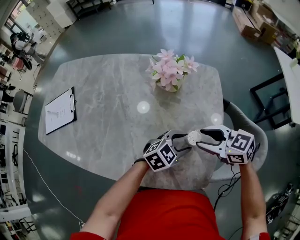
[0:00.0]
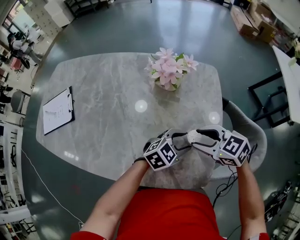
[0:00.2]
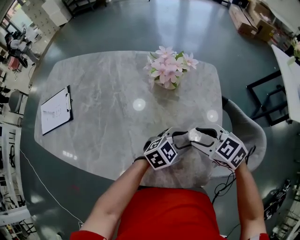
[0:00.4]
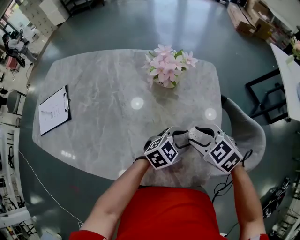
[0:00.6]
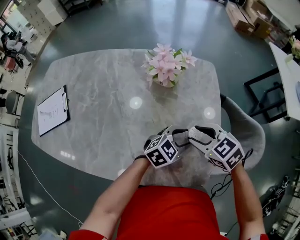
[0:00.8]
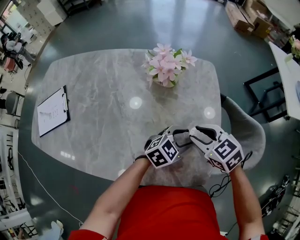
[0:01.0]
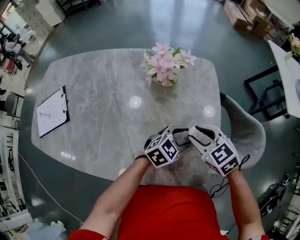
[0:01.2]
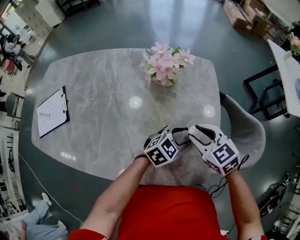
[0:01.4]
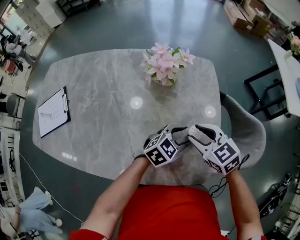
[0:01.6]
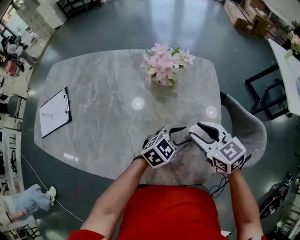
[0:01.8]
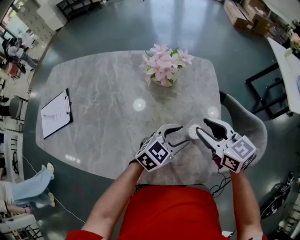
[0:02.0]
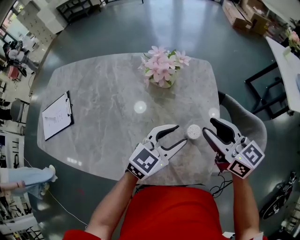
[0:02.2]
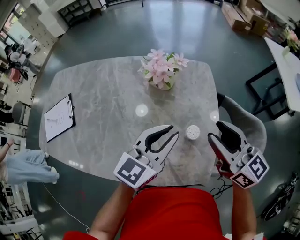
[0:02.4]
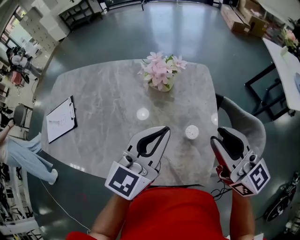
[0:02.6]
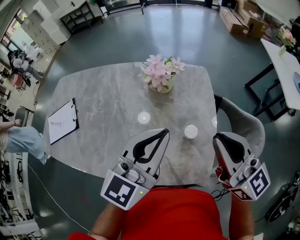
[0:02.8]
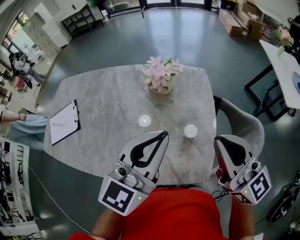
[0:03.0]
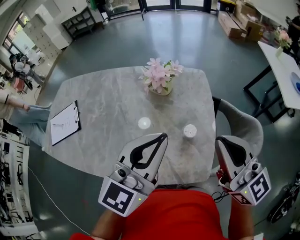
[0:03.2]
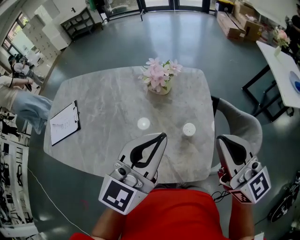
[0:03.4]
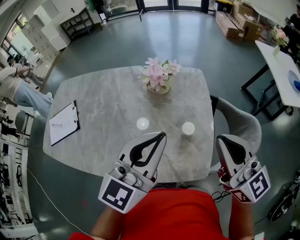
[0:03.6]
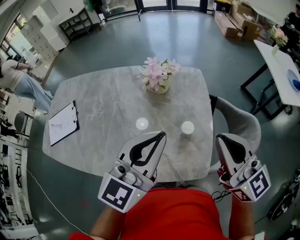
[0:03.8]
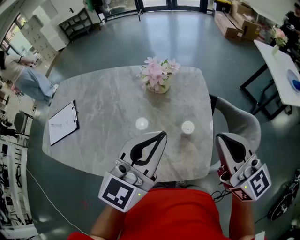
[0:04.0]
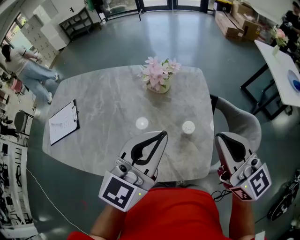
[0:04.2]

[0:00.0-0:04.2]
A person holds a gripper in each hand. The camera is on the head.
0:00.0 to 0:01.4: The right gripper swivels approximately 30 degrees.
0:01.4 to 0:02.8: The grippers both shift upward by some 25 cm. The left gripper points its fingers roughly 30 degrees further upward, and closes its fingers. Meanwhile the right gripper angles its fingers upward, by approximately 50 degrees.
0:02.8 to 0:04.2: The grippers move only a little.

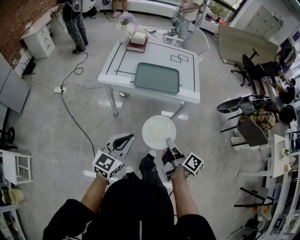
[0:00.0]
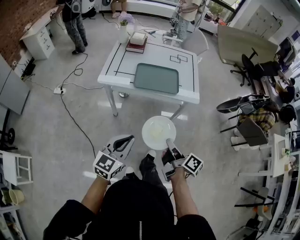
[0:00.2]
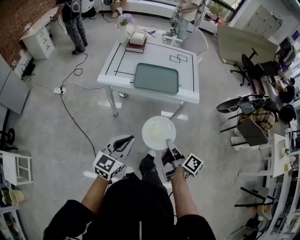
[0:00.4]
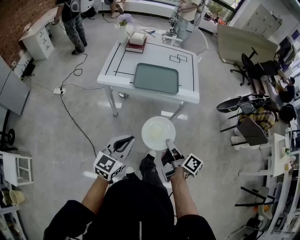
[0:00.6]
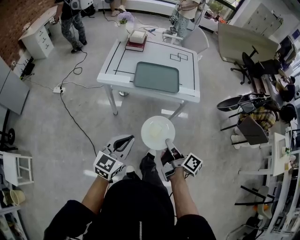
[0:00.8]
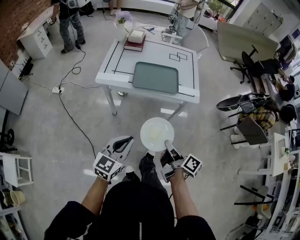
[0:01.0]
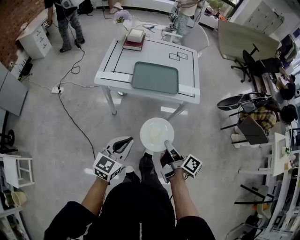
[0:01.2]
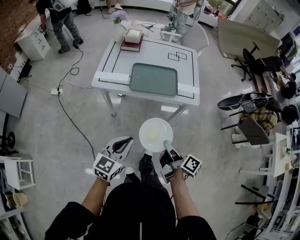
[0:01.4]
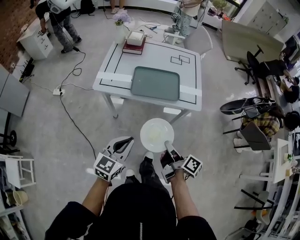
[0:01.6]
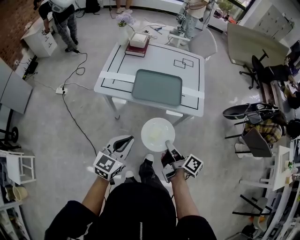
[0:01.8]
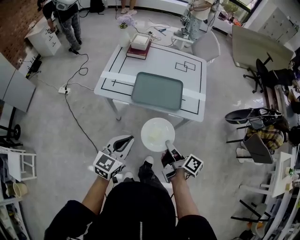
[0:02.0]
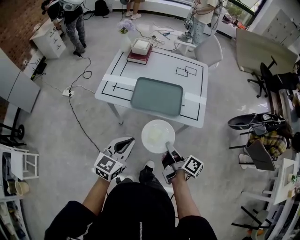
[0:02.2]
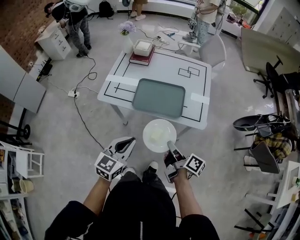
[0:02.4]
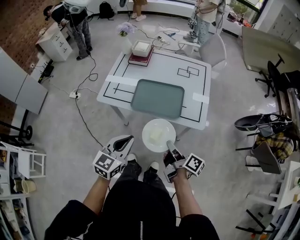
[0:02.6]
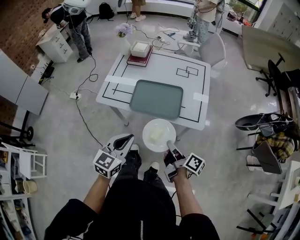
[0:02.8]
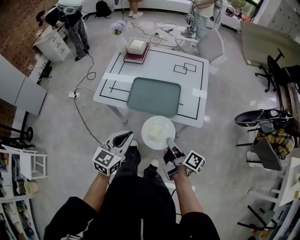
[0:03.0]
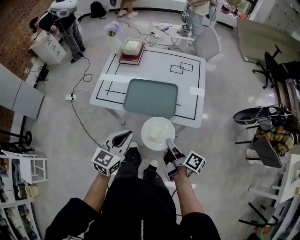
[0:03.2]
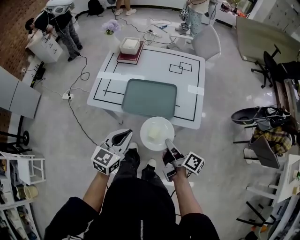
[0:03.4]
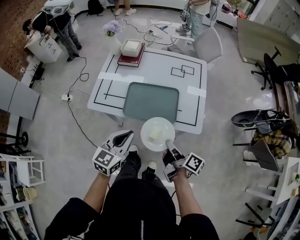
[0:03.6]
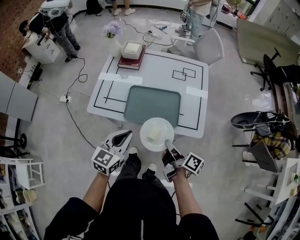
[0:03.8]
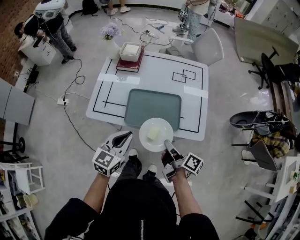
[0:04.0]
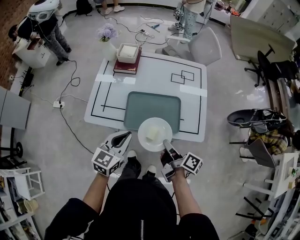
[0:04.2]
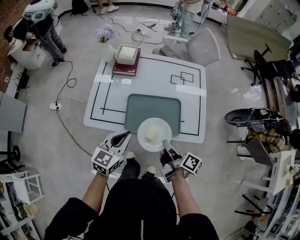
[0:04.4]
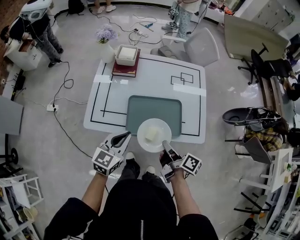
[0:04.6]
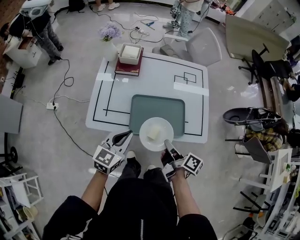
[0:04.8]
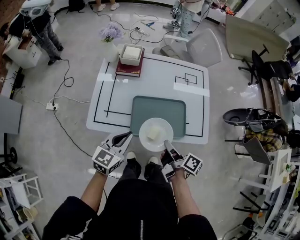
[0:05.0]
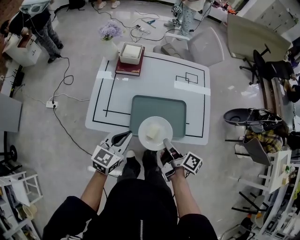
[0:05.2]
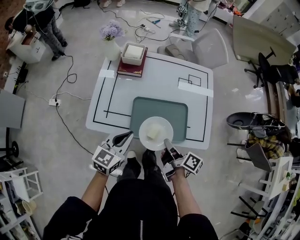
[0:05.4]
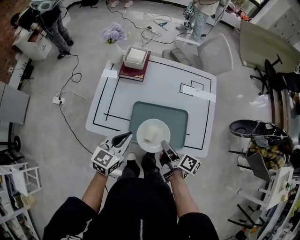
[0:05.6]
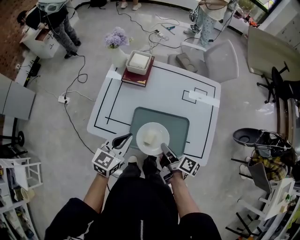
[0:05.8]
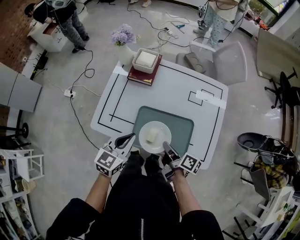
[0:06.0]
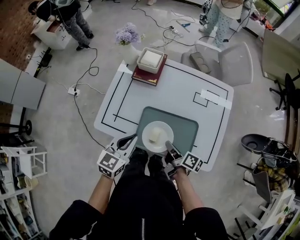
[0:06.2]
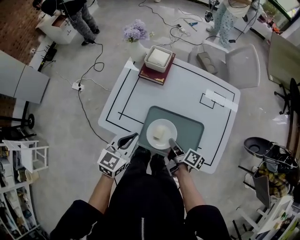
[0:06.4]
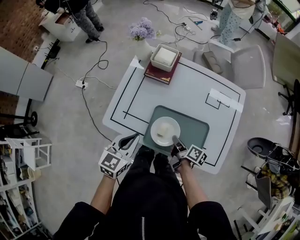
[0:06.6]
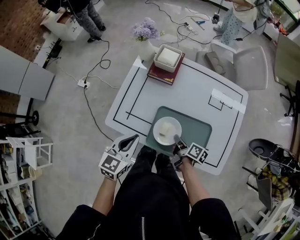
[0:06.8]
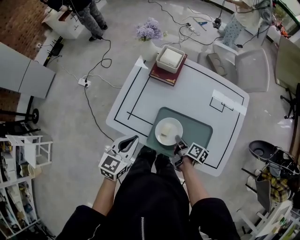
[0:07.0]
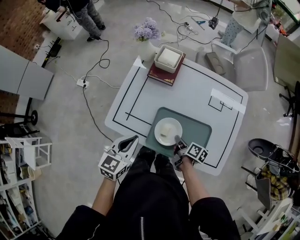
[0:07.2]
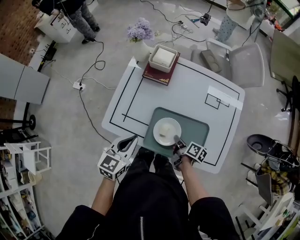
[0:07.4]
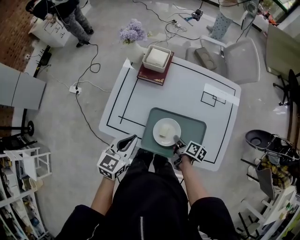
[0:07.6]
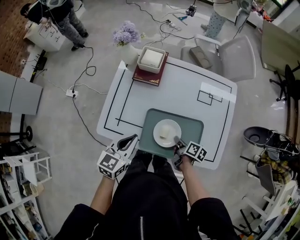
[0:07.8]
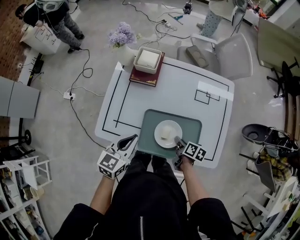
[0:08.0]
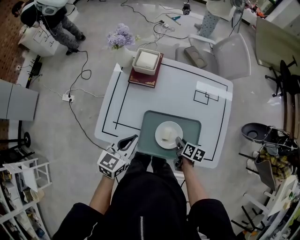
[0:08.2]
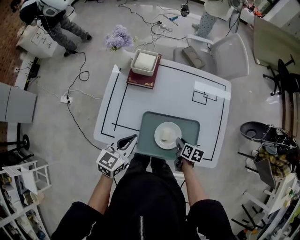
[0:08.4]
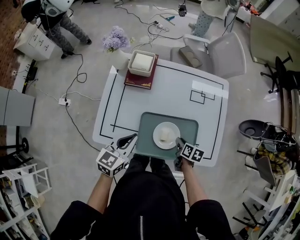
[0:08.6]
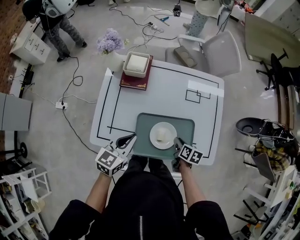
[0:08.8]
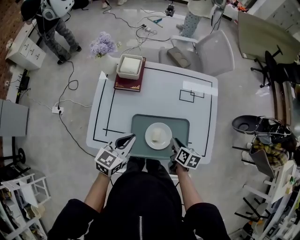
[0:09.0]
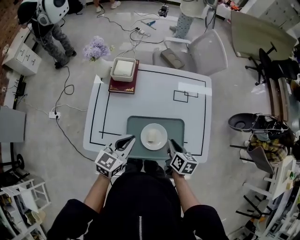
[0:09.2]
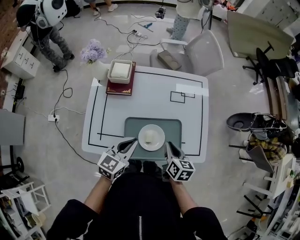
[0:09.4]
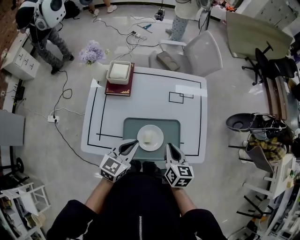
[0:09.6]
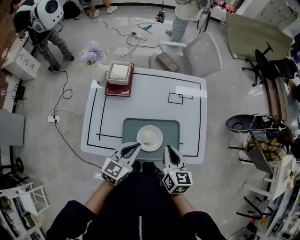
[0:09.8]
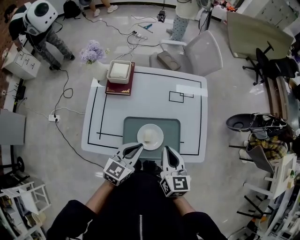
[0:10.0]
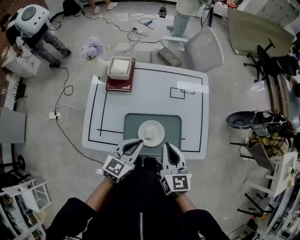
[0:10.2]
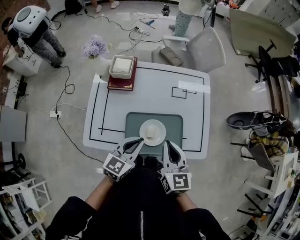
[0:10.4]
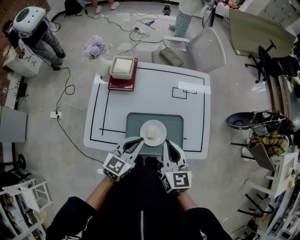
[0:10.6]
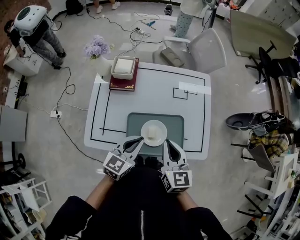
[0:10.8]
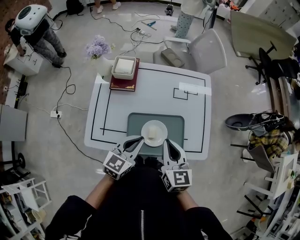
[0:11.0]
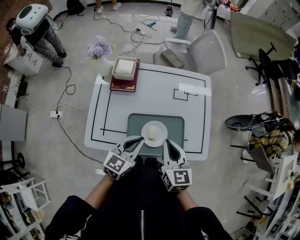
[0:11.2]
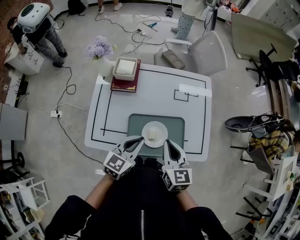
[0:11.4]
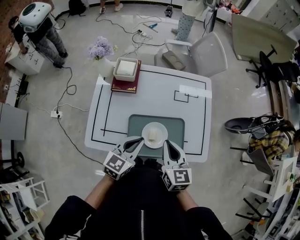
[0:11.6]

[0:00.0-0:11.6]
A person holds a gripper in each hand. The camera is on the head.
0:00.0 to 0:01.4: The left gripper shifts by approximately 5 cm.
0:01.4 to 0:02.8: The grippers both shift forward and to the right by about 15 cm.
0:02.8 to 0:04.4: The right gripper heads forward and to the left, covering about 15 cm, while the left gripper shifts approximately 20 cm forward.
0:04.4 to 0:05.8: Both grippers move forward, some 10 cm.
0:05.8 to 0:07.2: The left gripper travels to the left by some 5 cm. Meanwhile the right gripper is displaced downward and forward by about 15 cm.
0:07.2 to 0:08.8: The left gripper shifts roughly 10 cm forward and to the right; the right gripper shifts some 10 cm to the right, and turns by some 30 degrees.
0:08.8 to 0:10.2: The left gripper heads to the right, covering approximately 10 cm. The right gripper is displaced upward by about 25 cm, and tilts its fingers about 30 degrees upward.
0:10.2 to 0:11.6: There are only small adjustments of the grippers.

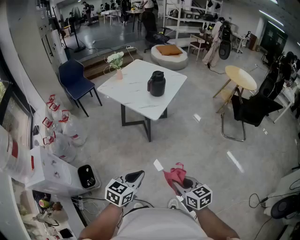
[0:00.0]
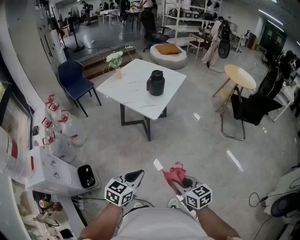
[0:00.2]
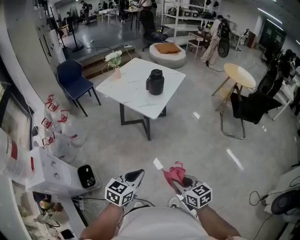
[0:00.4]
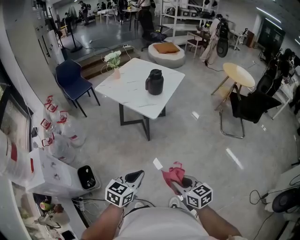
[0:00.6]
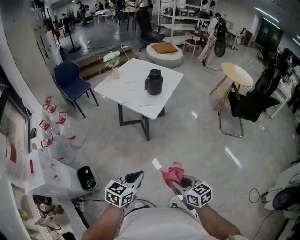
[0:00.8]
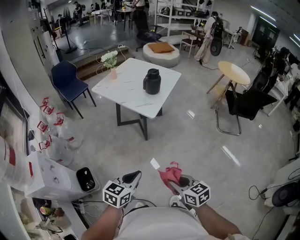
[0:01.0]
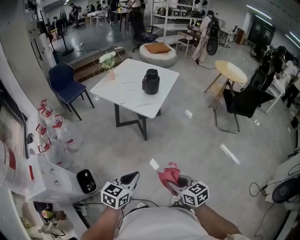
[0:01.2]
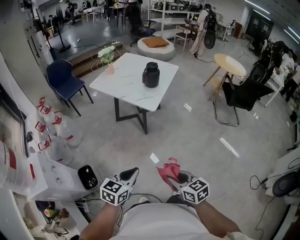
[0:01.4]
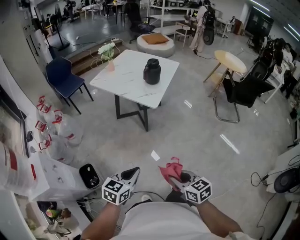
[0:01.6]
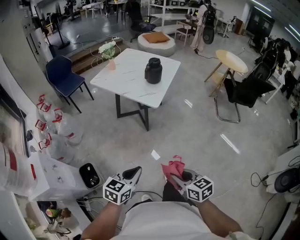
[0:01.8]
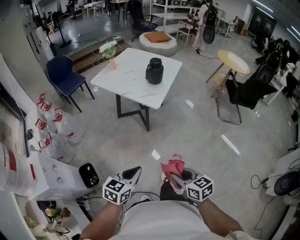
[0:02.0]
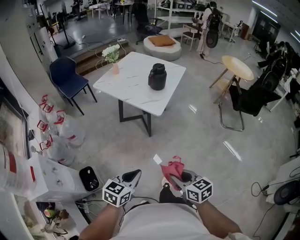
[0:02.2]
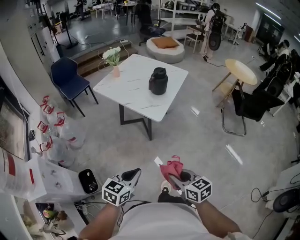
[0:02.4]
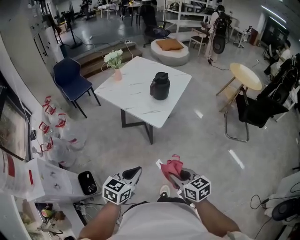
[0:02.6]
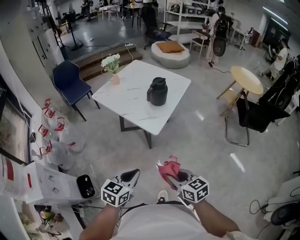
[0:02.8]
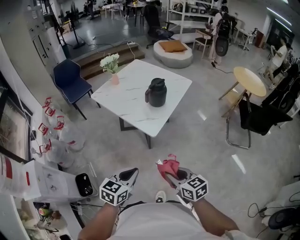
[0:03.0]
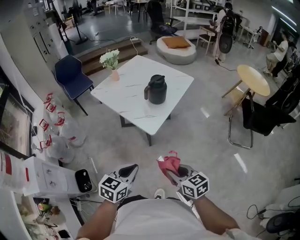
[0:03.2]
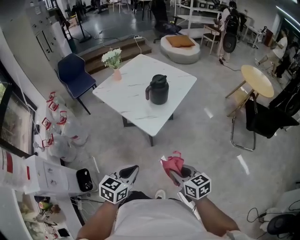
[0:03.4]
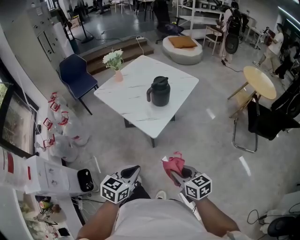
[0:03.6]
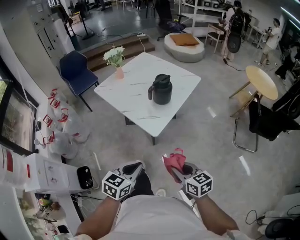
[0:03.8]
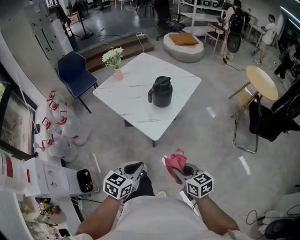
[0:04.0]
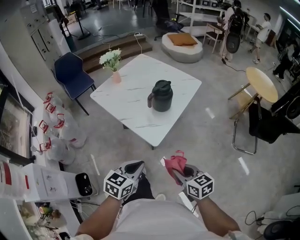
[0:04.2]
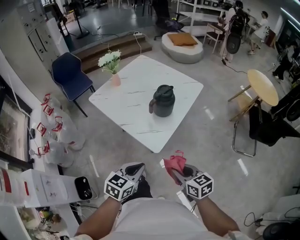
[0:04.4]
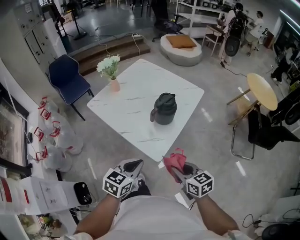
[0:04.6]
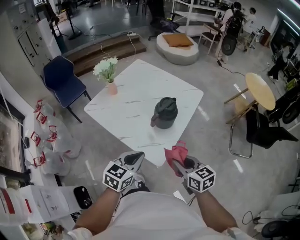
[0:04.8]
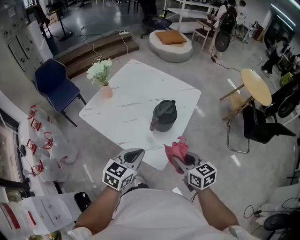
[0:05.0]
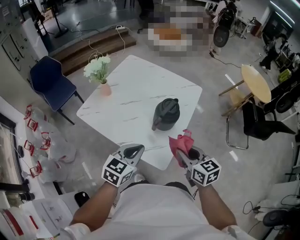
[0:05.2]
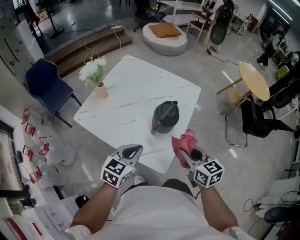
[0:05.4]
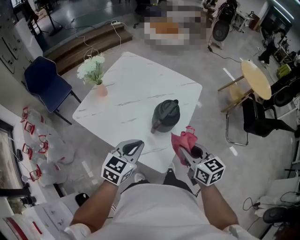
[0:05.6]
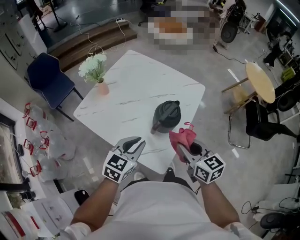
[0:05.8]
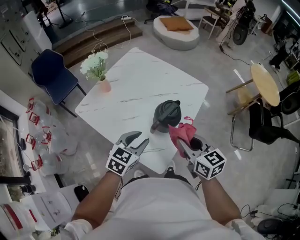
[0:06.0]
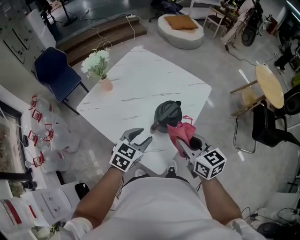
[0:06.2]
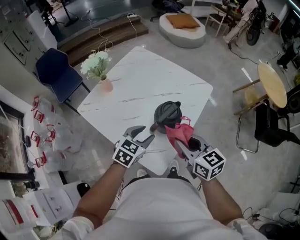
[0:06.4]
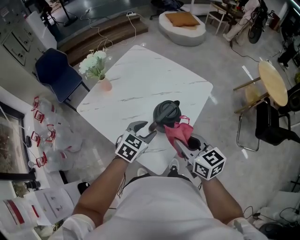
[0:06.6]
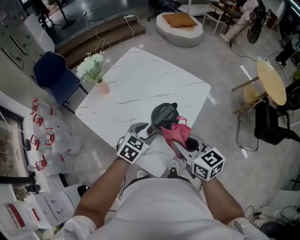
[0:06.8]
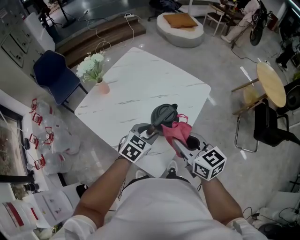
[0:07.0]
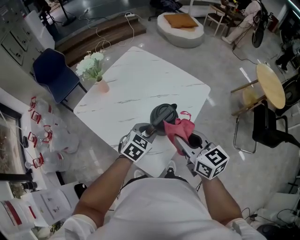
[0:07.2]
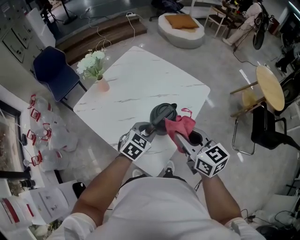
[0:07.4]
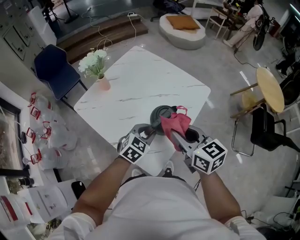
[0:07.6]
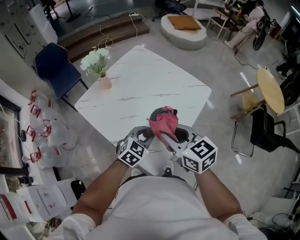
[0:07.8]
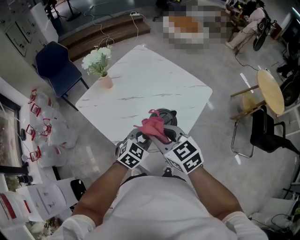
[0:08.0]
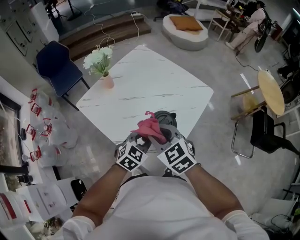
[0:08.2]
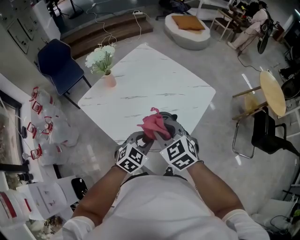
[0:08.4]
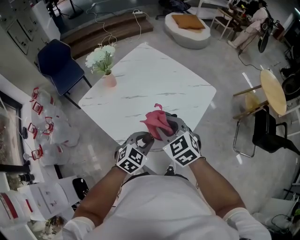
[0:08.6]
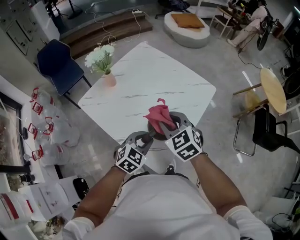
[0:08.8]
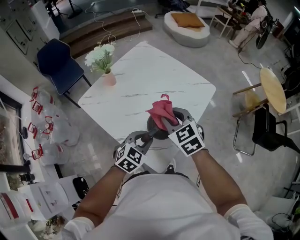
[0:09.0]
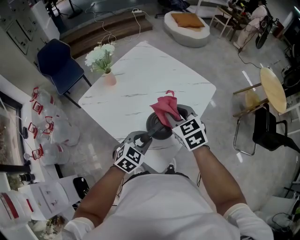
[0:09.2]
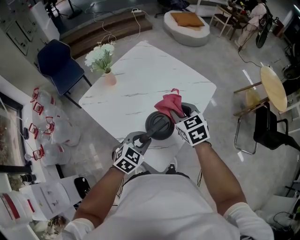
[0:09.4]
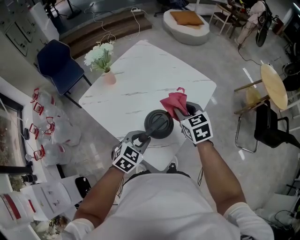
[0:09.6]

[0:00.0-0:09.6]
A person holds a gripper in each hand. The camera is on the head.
0:00.0 to 0:01.6: The grippers both shift to the left by roughly 10 cm.
0:01.6 to 0:03.2: The left gripper shifts about 25 cm forward and to the right. Meanwhile the right gripper heads forward, covering roughly 25 cm.
0:03.2 to 0:04.8: The grippers both shift forward by roughly 30 cm.
0:04.8 to 0:06.4: Both grippers travel together forward, about 20 cm. The left gripper opens.
0:06.4 to 0:08.0: The left gripper closes its fingers. Meanwhile the right gripper moves to the left, approximately 10 cm, and turns by about 20 degrees.
0:08.0 to 0:09.6: The right gripper travels forward and to the right by some 15 cm, and swivels about 20 degrees. The left gripper ends up about 5 cm from where it was.
